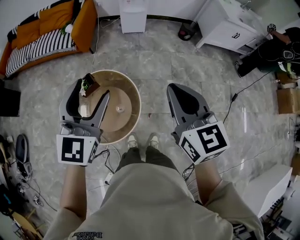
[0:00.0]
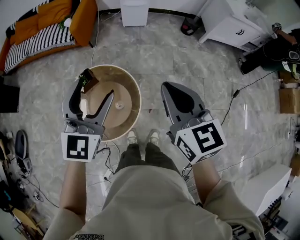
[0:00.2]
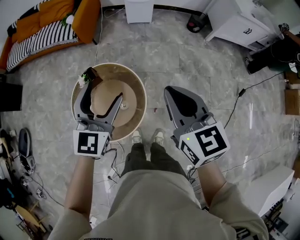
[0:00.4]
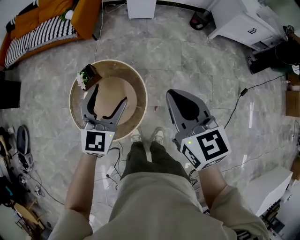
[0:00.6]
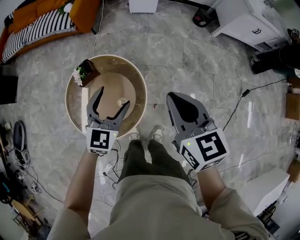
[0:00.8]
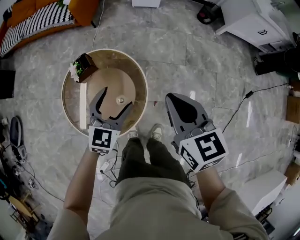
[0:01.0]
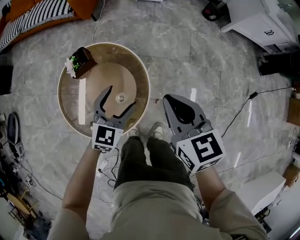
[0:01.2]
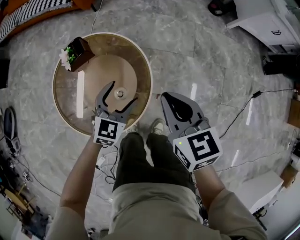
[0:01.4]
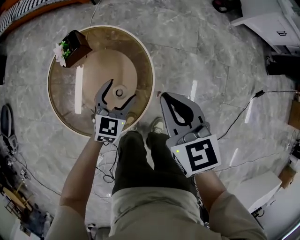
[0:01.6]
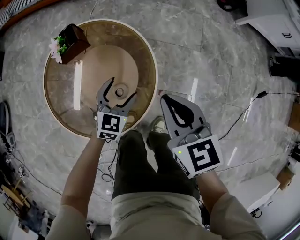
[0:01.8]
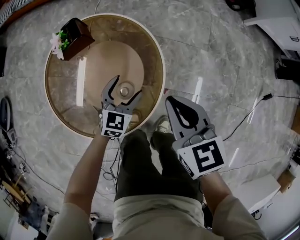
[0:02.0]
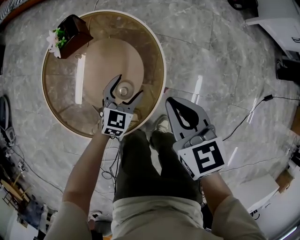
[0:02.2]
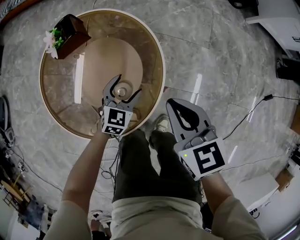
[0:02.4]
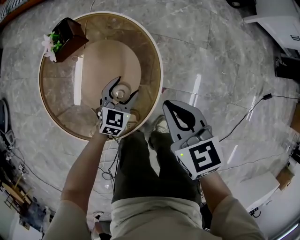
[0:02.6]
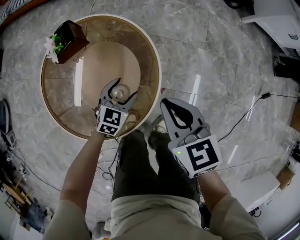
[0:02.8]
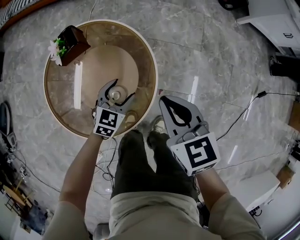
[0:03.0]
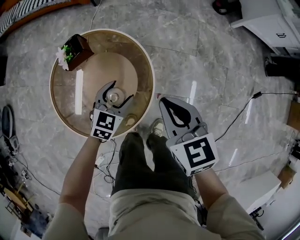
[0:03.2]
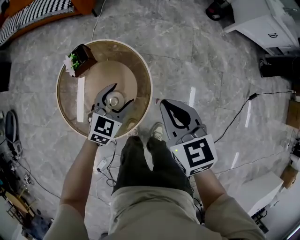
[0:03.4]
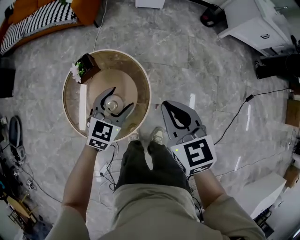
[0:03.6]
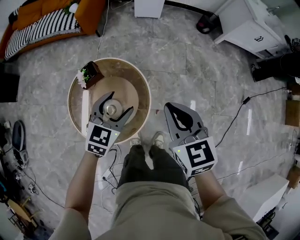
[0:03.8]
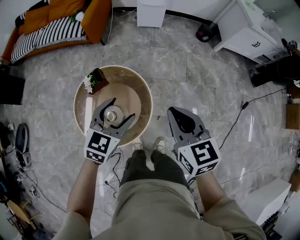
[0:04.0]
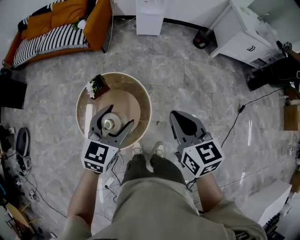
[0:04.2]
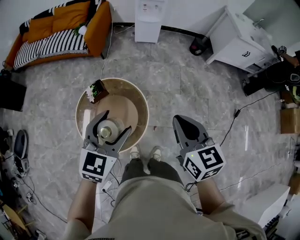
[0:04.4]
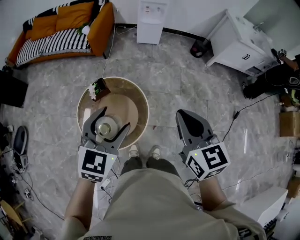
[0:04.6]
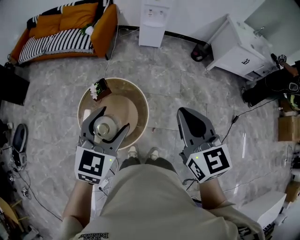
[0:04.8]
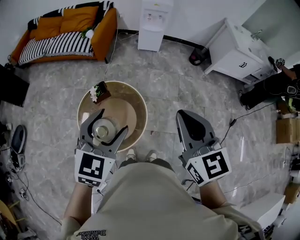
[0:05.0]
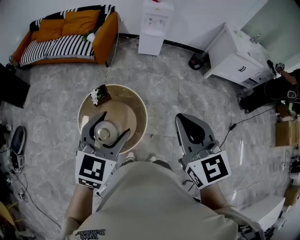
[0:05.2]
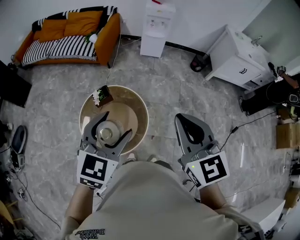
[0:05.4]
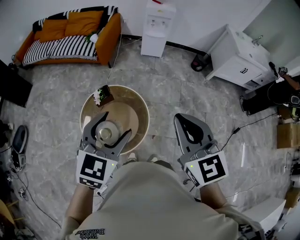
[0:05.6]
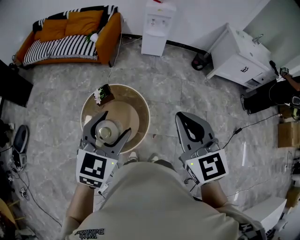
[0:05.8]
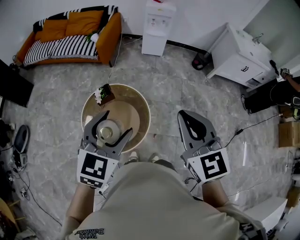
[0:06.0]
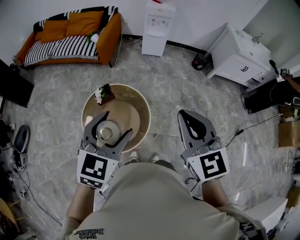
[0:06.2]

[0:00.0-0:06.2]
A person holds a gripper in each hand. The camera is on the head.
0:00.0 to 0:01.6: Both grippers travel together downward, about 50 cm. The left gripper changes its angle by approximately 30 degrees. Meanwhile the right gripper turns by approximately 20 degrees.
0:01.6 to 0:03.2: The left gripper moves roughly 15 cm downward and comes back, while the right gripper reaches some 10 cm downward, then returns.
0:03.2 to 0:04.6: The two grippers go roughly 40 cm upward.
0:04.6 to 0:06.2: The right gripper shifts about 10 cm upward. Meanwhile the left gripper is displaced upward and backward by roughly 10 cm.

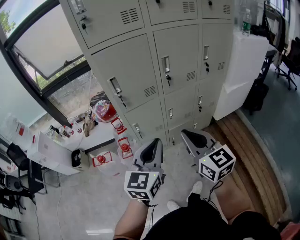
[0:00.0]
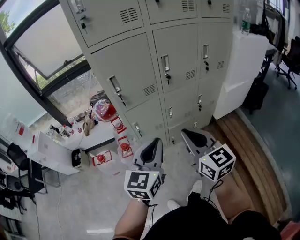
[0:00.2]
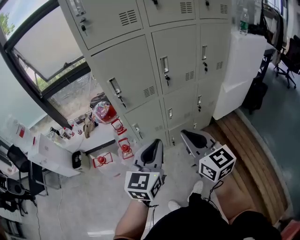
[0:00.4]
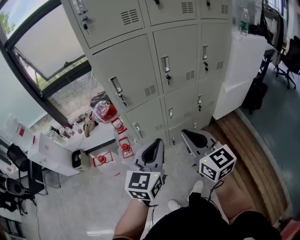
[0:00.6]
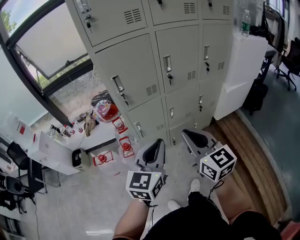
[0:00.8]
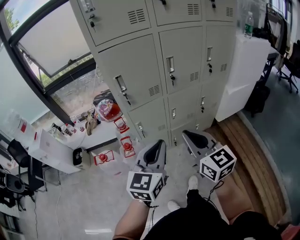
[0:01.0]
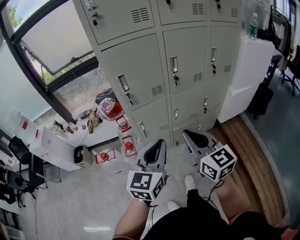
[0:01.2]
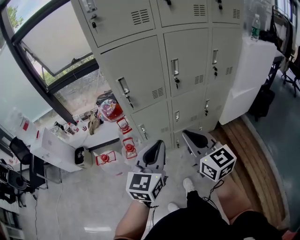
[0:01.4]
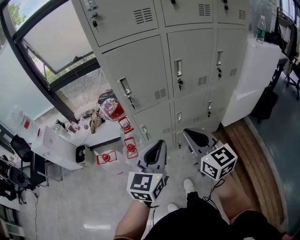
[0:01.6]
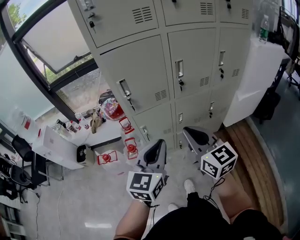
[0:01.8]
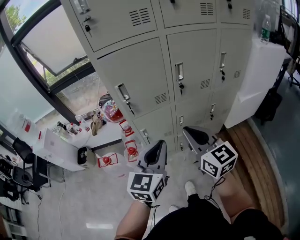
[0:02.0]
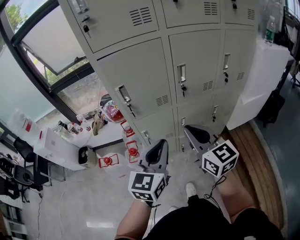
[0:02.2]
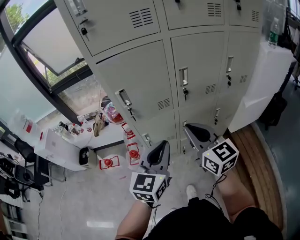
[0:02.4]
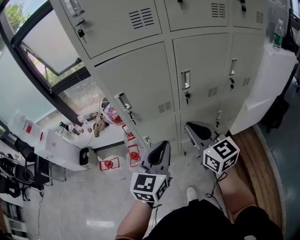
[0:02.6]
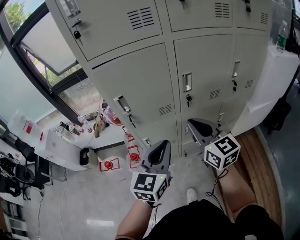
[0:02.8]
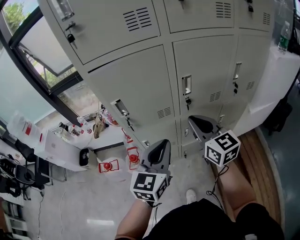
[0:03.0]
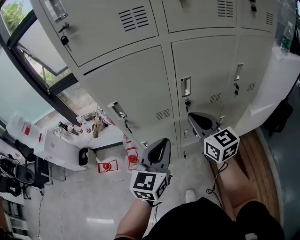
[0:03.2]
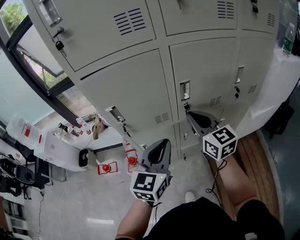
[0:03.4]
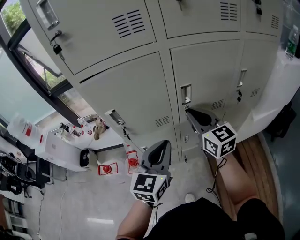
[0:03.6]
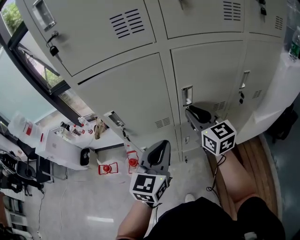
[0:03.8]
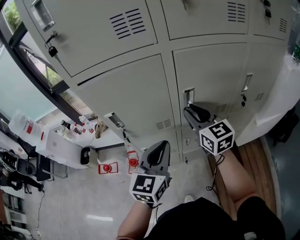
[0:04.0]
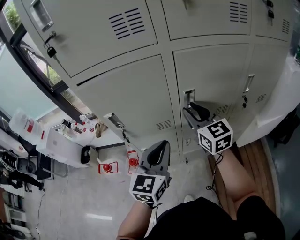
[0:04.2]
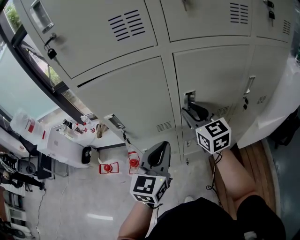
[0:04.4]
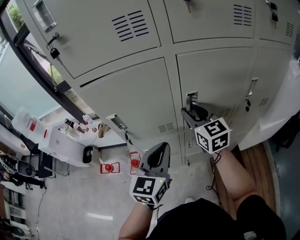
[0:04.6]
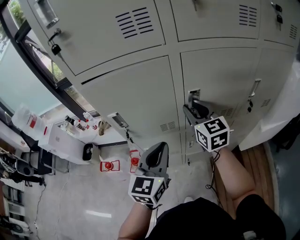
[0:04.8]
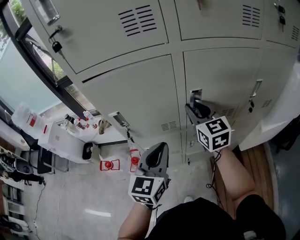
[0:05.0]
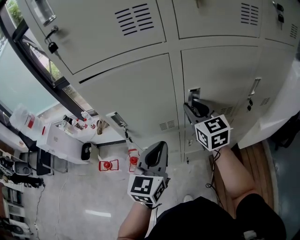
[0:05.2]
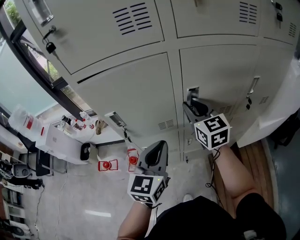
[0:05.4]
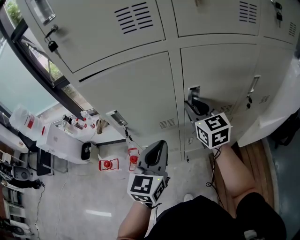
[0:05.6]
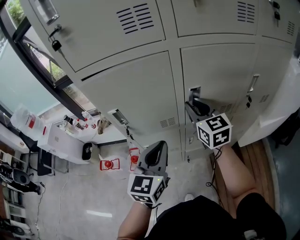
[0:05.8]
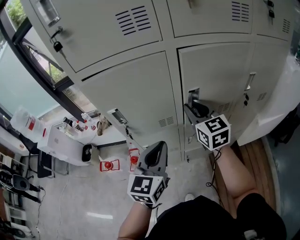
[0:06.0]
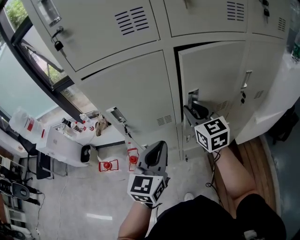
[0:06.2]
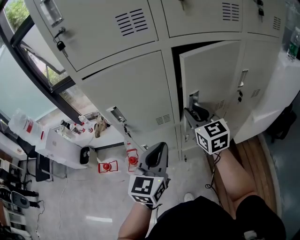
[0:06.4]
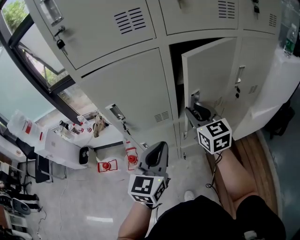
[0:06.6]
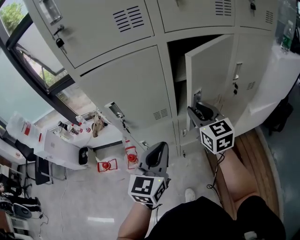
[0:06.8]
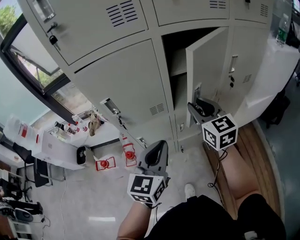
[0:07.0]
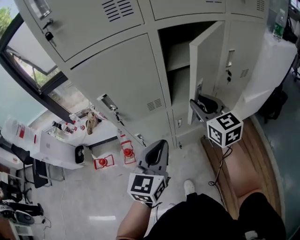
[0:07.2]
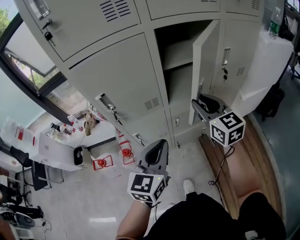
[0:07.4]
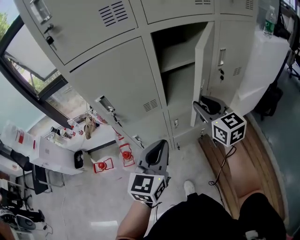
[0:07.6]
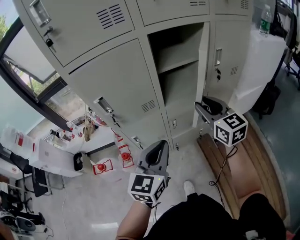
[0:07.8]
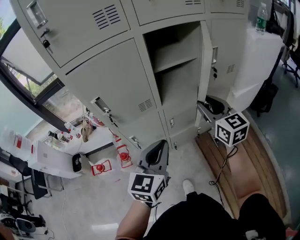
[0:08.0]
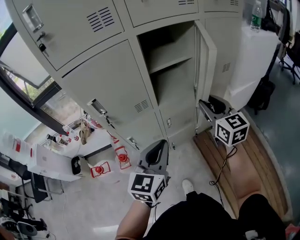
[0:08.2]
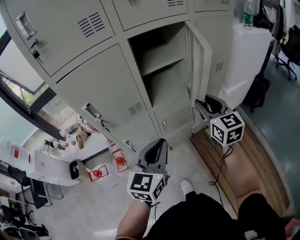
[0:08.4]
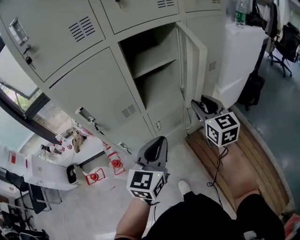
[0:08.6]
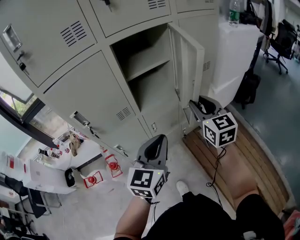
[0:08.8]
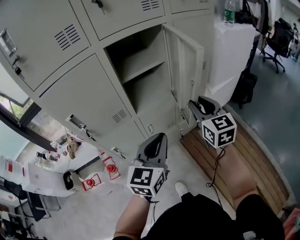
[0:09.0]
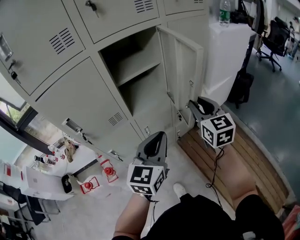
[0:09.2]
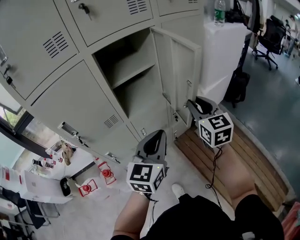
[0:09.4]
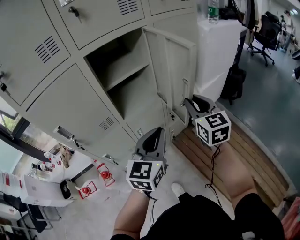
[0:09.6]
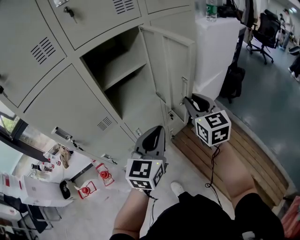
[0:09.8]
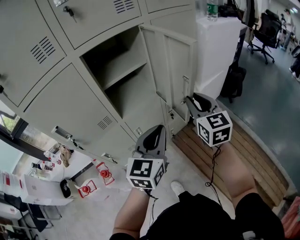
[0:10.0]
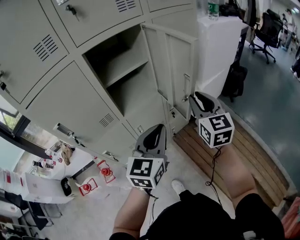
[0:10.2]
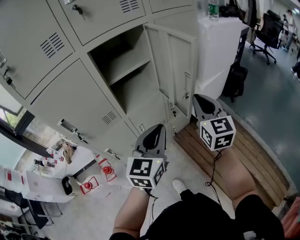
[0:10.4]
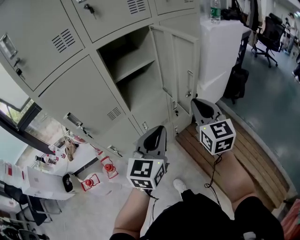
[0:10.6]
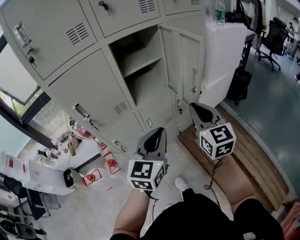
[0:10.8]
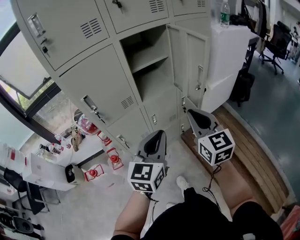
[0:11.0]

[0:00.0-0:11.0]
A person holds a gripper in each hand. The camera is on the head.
0:00.0 to 0:01.6: The grippers move only a little.
0:01.6 to 0:03.2: The grippers both shift forward by approximately 20 cm.
0:03.2 to 0:04.8: The left gripper heads forward, covering some 5 cm. Meanwhile the right gripper heads forward, covering approximately 15 cm, and opens its fingers.
0:04.8 to 0:06.2: The grippers make only small movements.
0:06.2 to 0:07.8: The left gripper heads backward, covering about 10 cm. The right gripper heads backward and to the right, covering some 15 cm.
0:07.8 to 0:09.4: Both grippers move to the right, some 15 cm. The right gripper changes its angle by some 20 degrees.
0:09.4 to 0:11.0: Both grippers travel together backward, about 15 cm. The right gripper closes up.

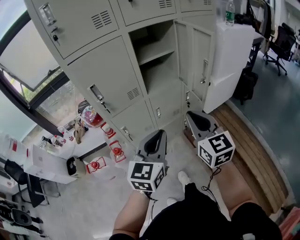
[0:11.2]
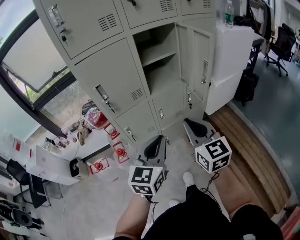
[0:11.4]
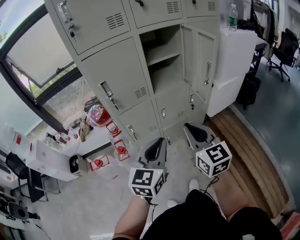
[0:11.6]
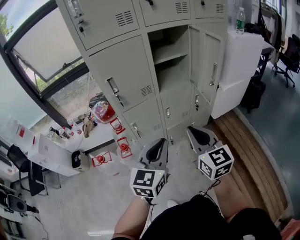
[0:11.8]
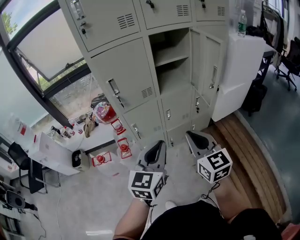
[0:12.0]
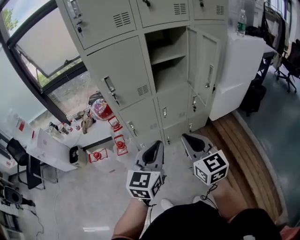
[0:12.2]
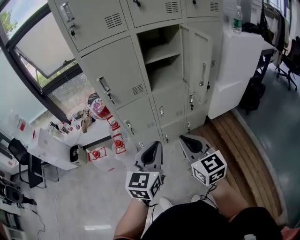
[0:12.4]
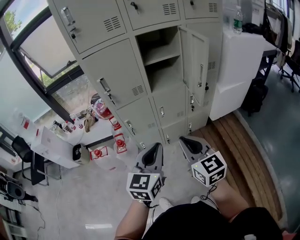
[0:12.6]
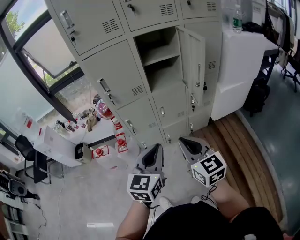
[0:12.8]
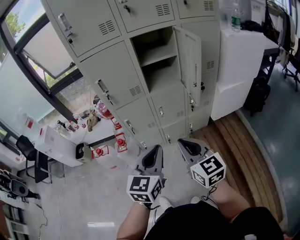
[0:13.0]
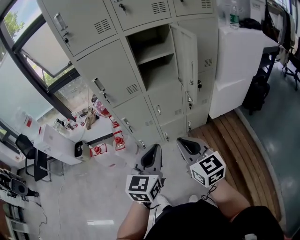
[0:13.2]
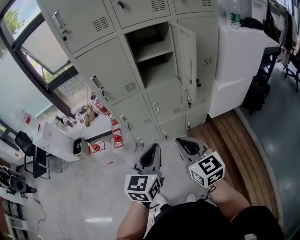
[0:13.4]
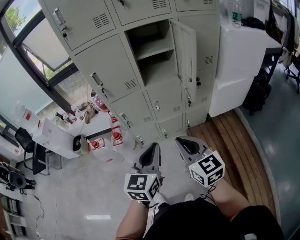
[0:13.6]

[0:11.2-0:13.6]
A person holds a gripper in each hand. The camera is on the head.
0:11.2 to 0:12.4: Both grippers move backward, roughly 10 cm.
0:12.4 to 0:13.6: The two grippers go about 10 cm to the right.

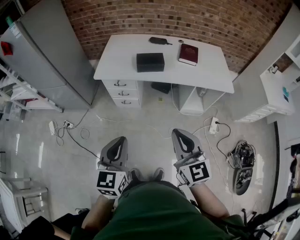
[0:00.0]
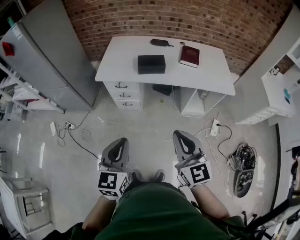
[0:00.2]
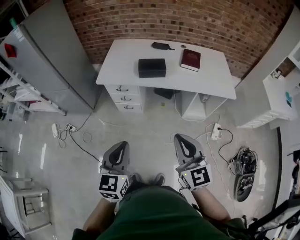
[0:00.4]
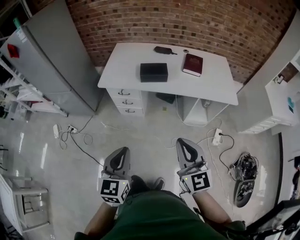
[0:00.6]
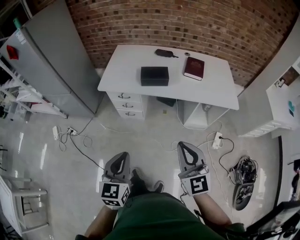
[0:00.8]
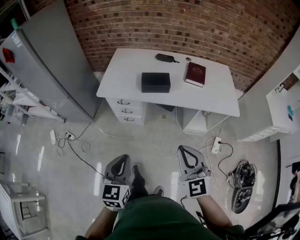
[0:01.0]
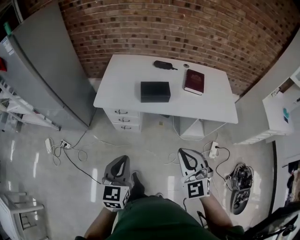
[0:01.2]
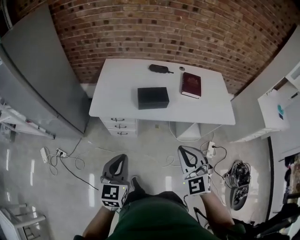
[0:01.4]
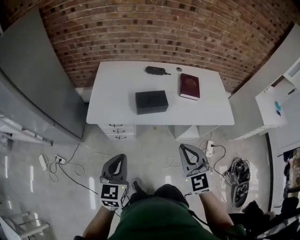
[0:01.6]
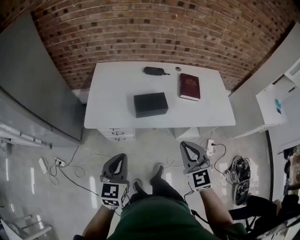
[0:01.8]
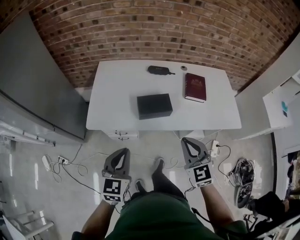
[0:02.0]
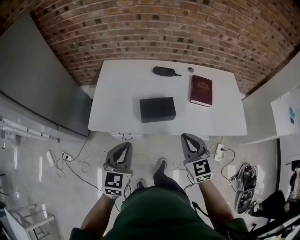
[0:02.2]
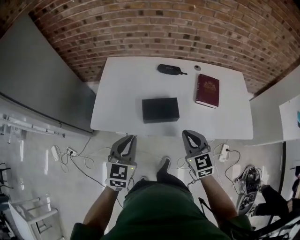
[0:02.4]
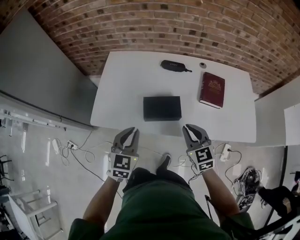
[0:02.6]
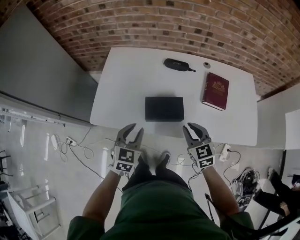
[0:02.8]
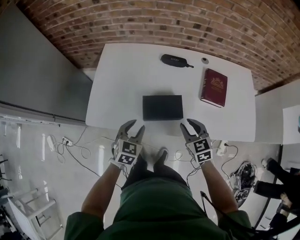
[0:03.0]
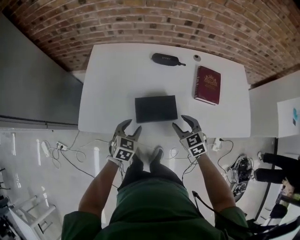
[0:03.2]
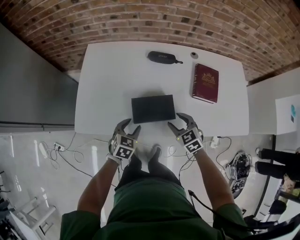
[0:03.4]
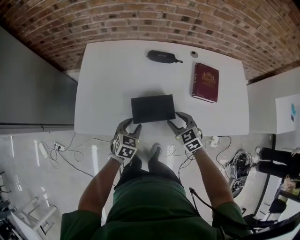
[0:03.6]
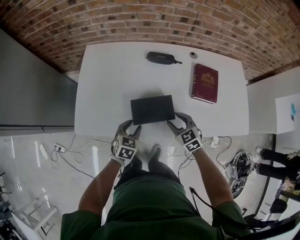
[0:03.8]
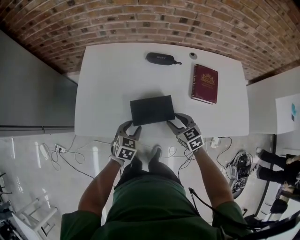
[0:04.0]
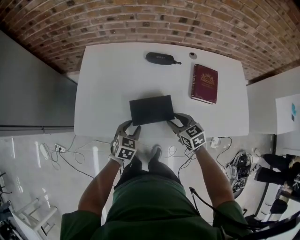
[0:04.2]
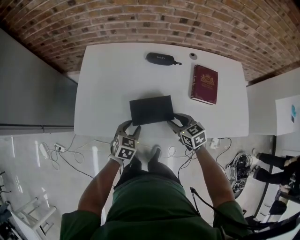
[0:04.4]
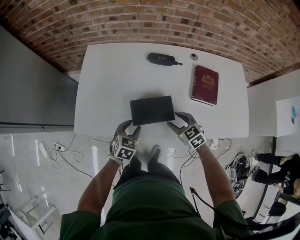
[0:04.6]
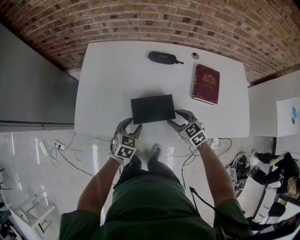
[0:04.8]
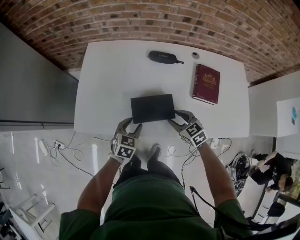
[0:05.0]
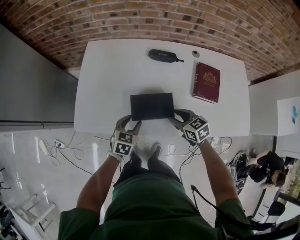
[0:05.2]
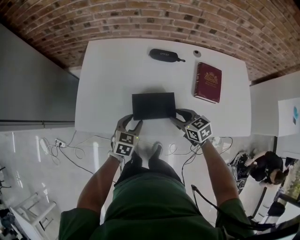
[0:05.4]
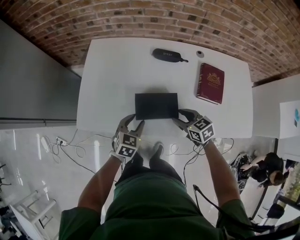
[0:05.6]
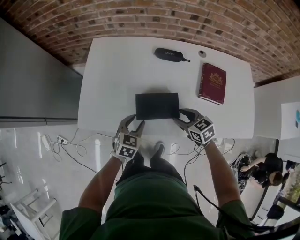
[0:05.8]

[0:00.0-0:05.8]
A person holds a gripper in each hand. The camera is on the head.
0:00.0 to 0:01.4: Both grippers travel together forward, approximately 20 cm. The right gripper rotates some 30 degrees.
0:01.4 to 0:02.8: Both grippers move forward and downward, roughly 35 cm. The right gripper rotates approximately 30 degrees; the left gripper opens its fingers.
0:02.8 to 0:04.4: Both grippers travel together downward and forward, roughly 15 cm. The right gripper changes its angle by some 20 degrees, and opens up.
0:04.4 to 0:05.8: The grippers move only a little.
